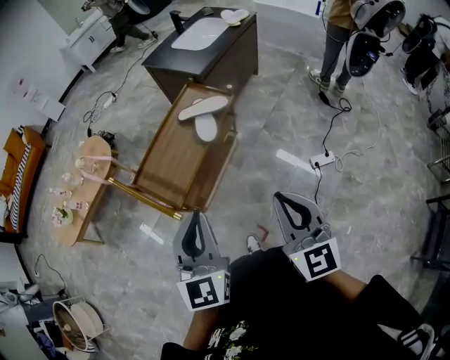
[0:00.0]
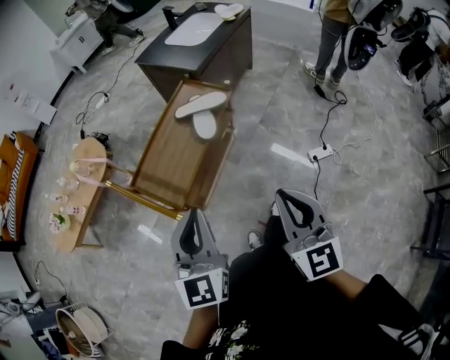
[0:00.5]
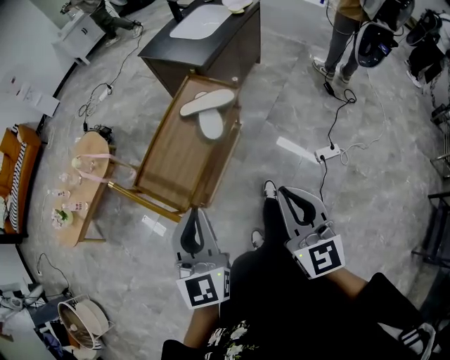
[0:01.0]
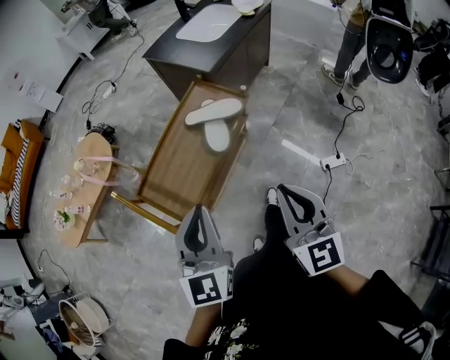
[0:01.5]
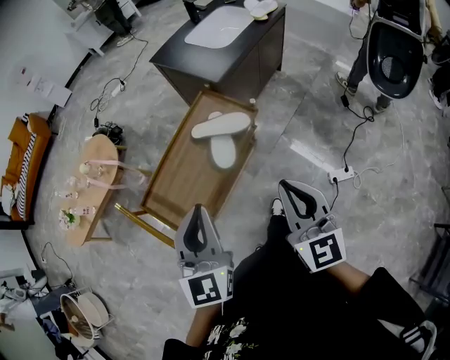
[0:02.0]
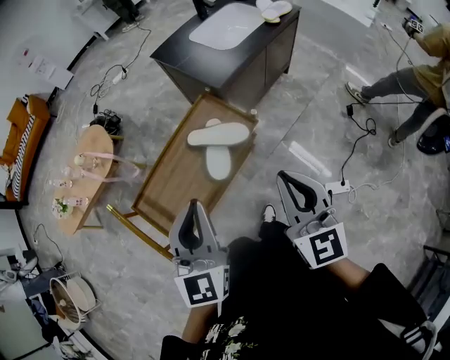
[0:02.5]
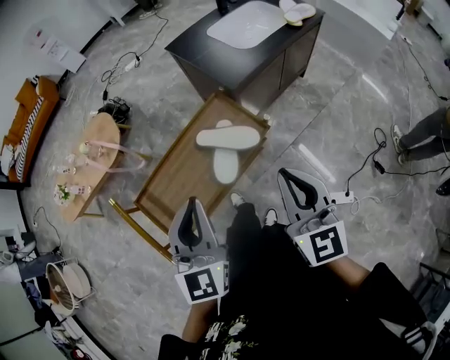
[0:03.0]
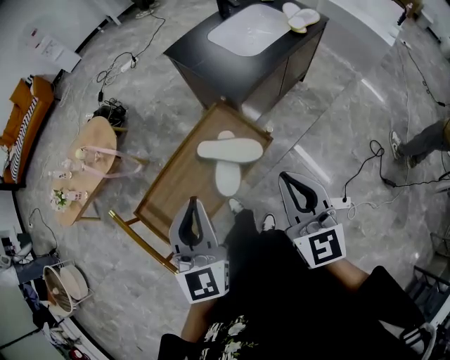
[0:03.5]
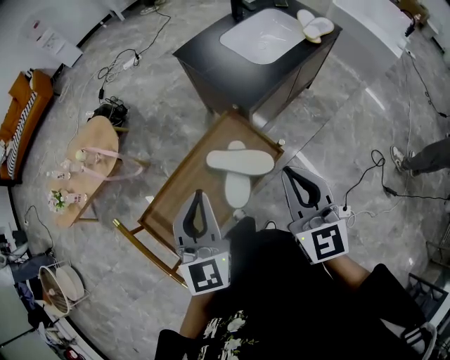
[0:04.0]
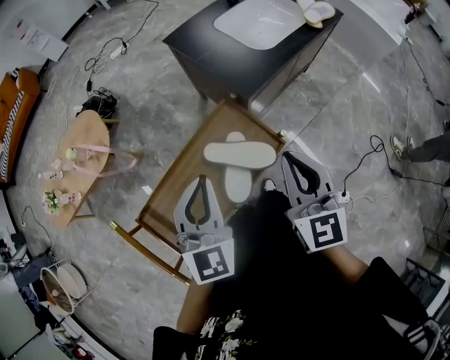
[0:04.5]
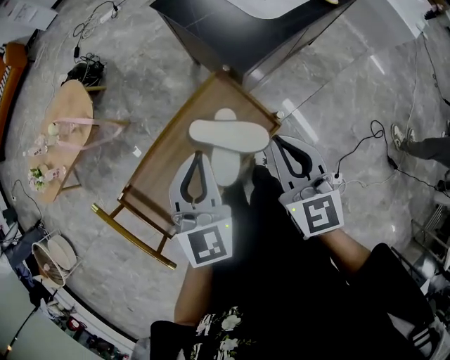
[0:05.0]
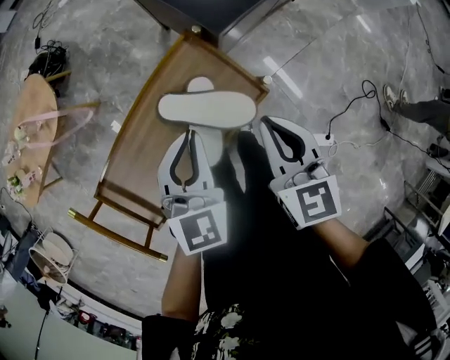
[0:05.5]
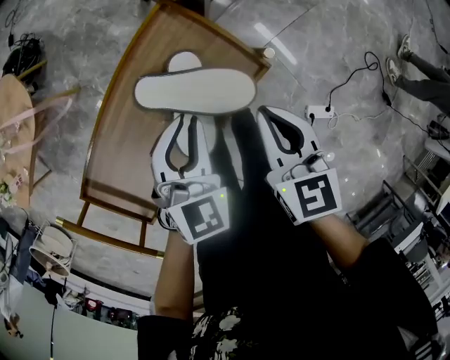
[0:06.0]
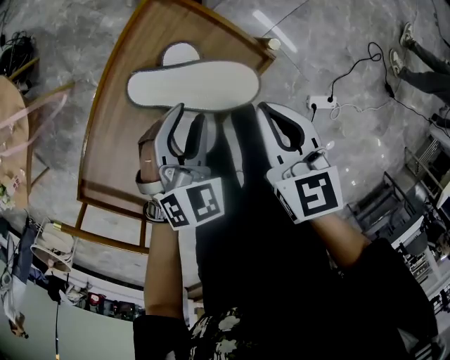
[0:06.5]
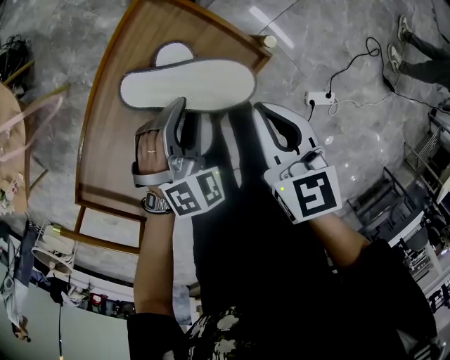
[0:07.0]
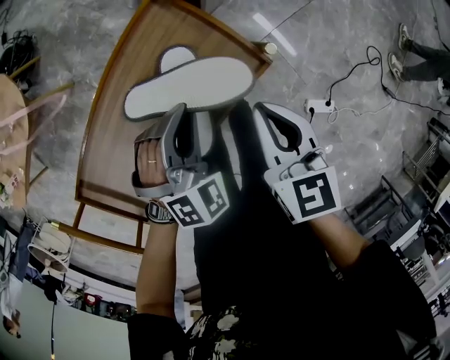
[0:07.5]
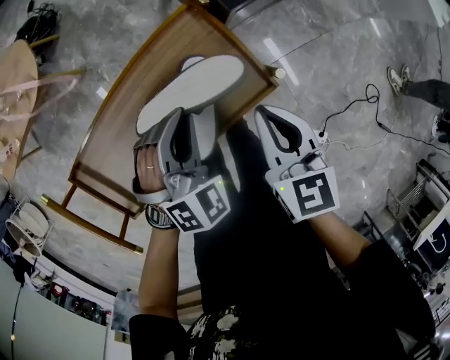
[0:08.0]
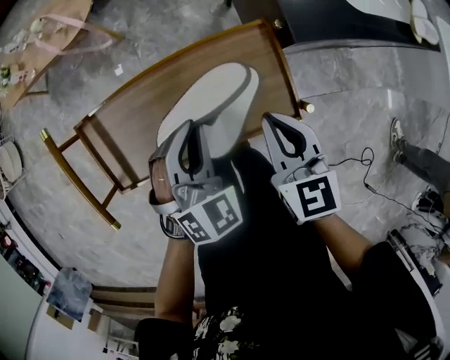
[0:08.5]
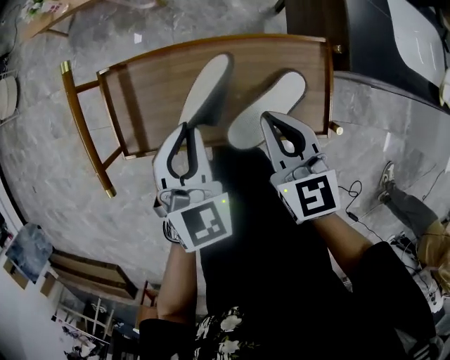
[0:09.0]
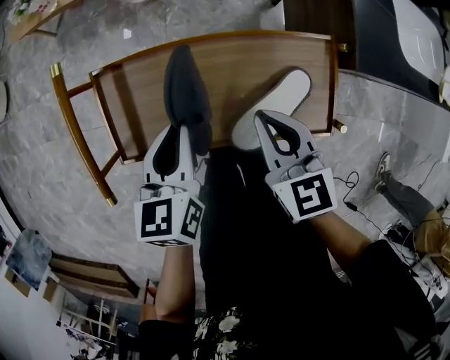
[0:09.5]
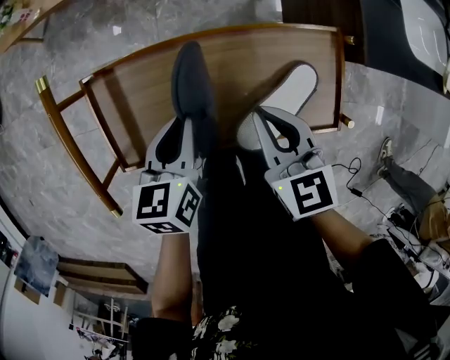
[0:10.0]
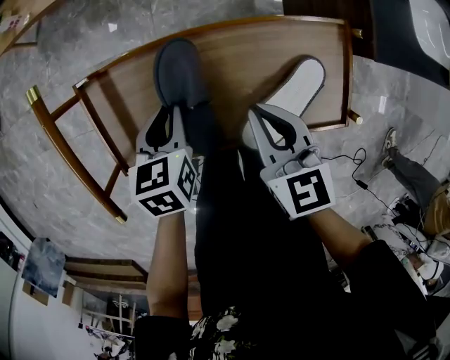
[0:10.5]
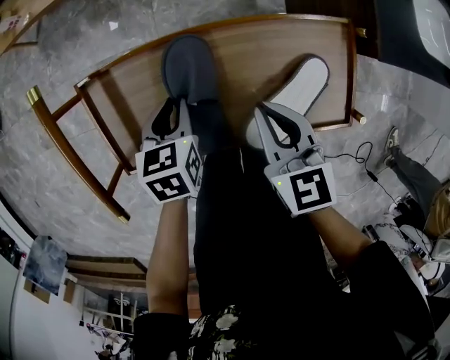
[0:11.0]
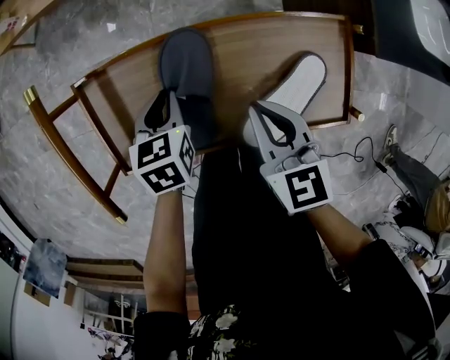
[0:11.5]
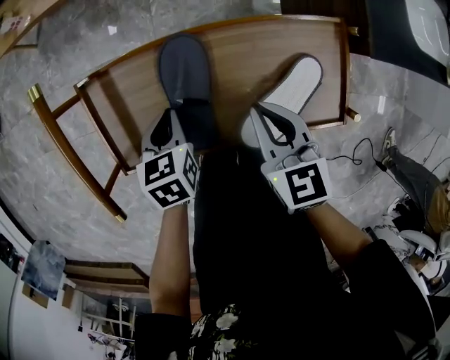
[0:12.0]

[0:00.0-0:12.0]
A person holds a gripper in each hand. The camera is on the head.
0:00.0 to 0:02.0: Both grippers travel together forward, about 20 cm.
0:02.0 to 0:04.0: Both grippers move forward, some 20 cm.
0:04.0 to 0:06.0: The right gripper shifts some 20 cm downward, and turns by about 30 degrees. The left gripper is displaced downward and to the right by about 25 cm, and turns by roughly 30 degrees.
0:06.0 to 0:08.0: The left gripper travels downward and back again, approximately 10 cm each way, swivels roughly 30 degrees, and opens, then closes once more.
0:08.0 to 0:10.0: The right gripper changes place by some 20 cm, and turns by about 30 degrees. Meanwhile the left gripper changes place by roughly 25 cm, and twists approximately 90 degrees counterclockwise, seen from behind.
0:10.0 to 0:12.0: The left gripper is displaced downward by about 10 cm.

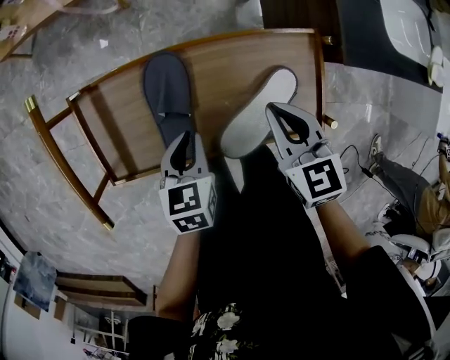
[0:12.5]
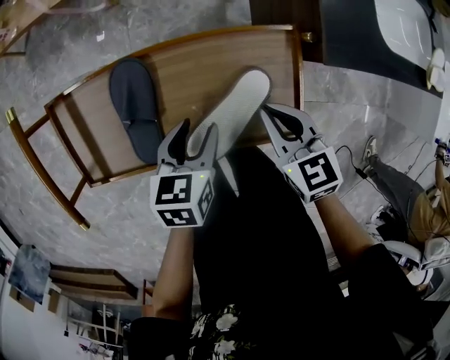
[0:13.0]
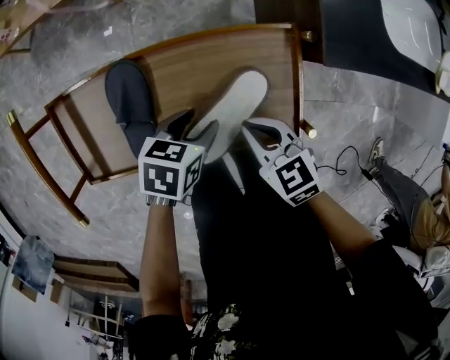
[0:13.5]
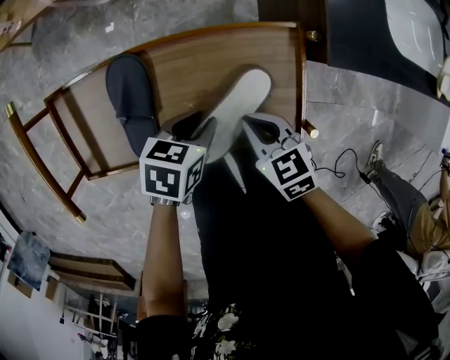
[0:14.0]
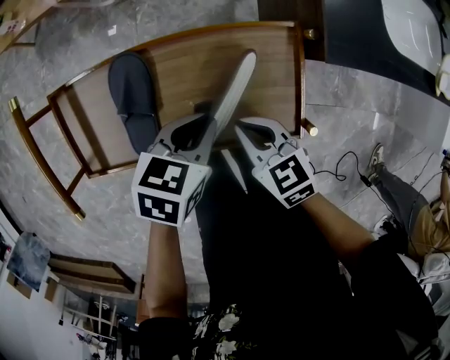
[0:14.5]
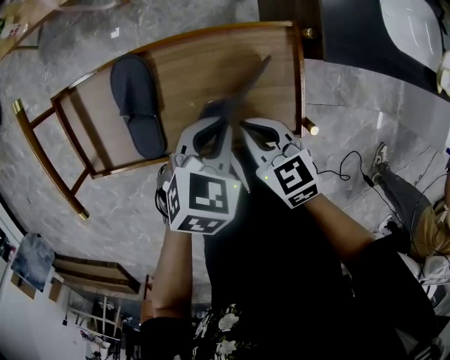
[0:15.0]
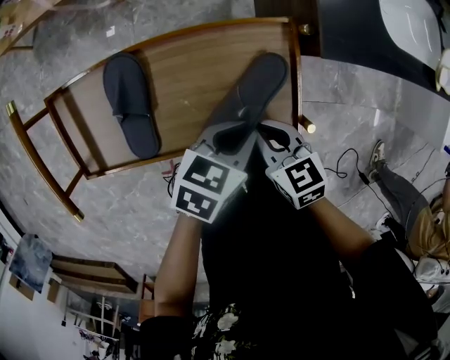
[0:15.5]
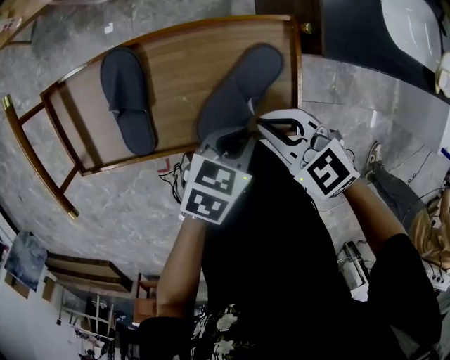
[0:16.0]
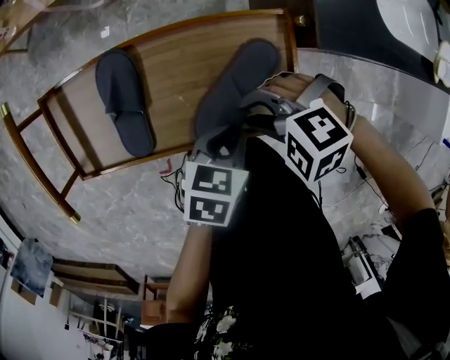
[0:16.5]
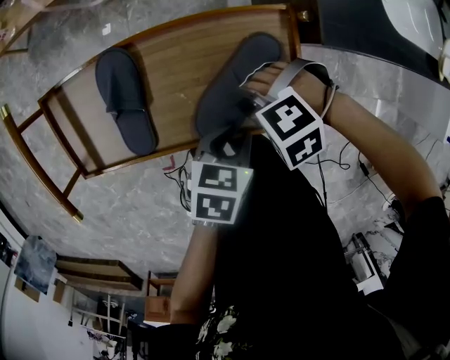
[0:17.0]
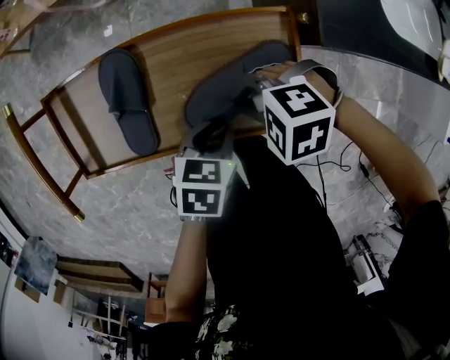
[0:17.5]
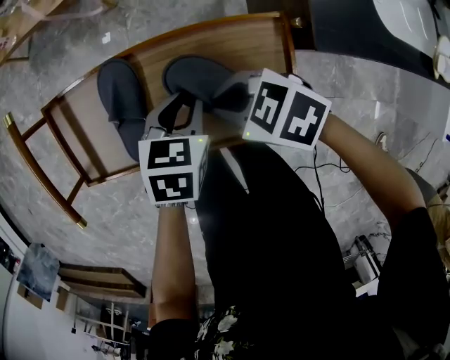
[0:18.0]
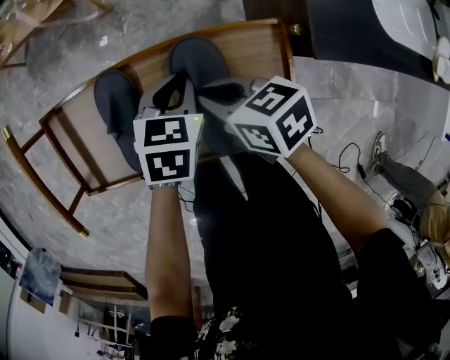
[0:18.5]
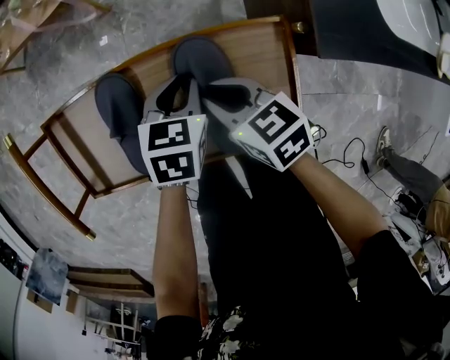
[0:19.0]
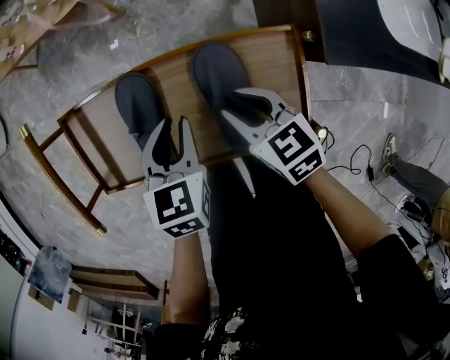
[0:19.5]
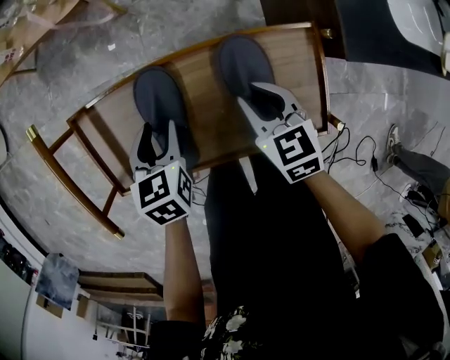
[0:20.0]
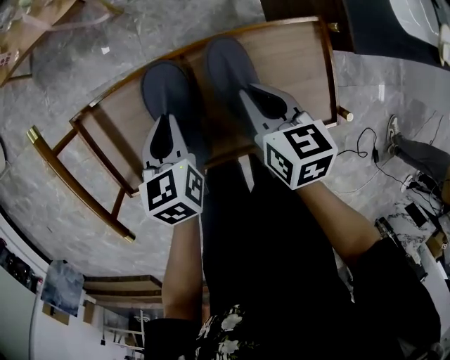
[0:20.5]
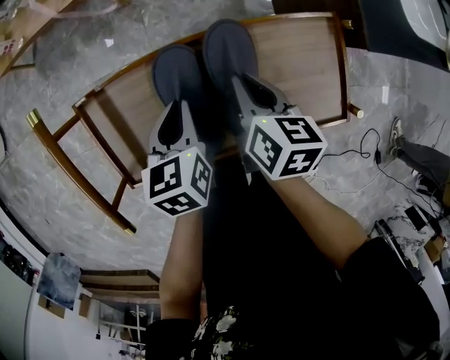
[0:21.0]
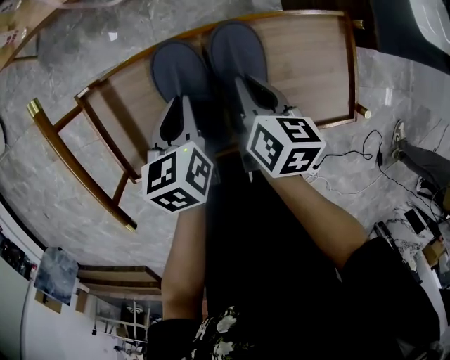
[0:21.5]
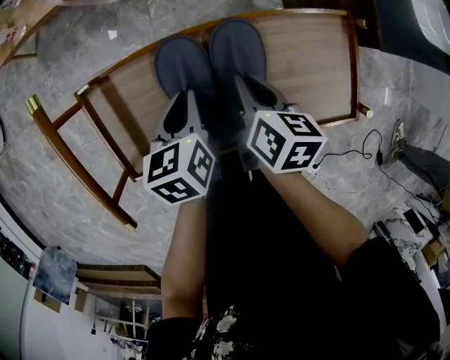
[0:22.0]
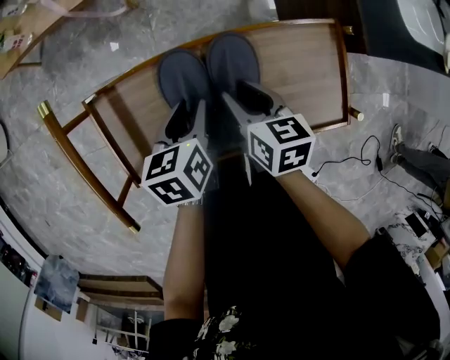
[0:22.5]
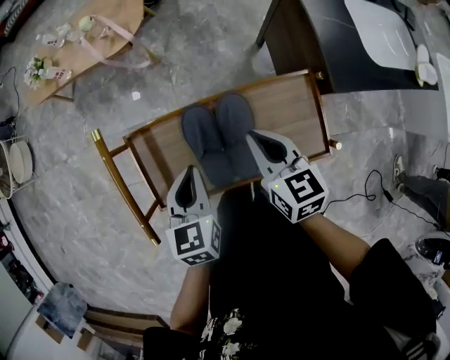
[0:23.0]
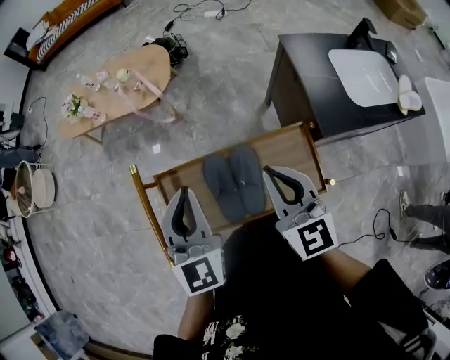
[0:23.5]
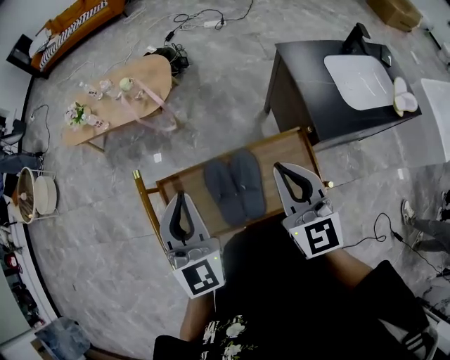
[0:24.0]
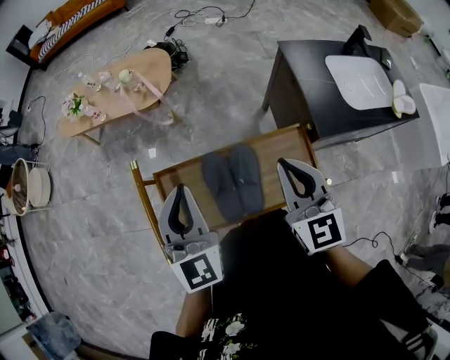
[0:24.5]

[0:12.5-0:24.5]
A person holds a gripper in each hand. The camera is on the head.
0:12.5 to 0:14.5: The left gripper is displaced to the right by some 15 cm, rotates roughly 20 degrees, and opens, then closes again, while the right gripper is displaced downward by about 5 cm.
0:14.5 to 0:16.5: The left gripper shifts by about 10 cm. The right gripper twists about 60 degrees counterclockwise, seen from behind, and opens up.
0:16.5 to 0:18.5: The right gripper ends up about 10 cm from where it was, rolls clockwise, seen from behind, by some 70 degrees, and closes its fingers. Meanwhile the left gripper ends up approximately 15 cm from where it was, and swivels approximately 20 degrees.
0:18.5 to 0:20.5: The right gripper swivels roughly 30 degrees, and opens, then closes again. Meanwhile the left gripper heads to the left, covering some 15 cm, rotates roughly 20 degrees, and opens, then closes once more.
0:20.5 to 0:22.5: The right gripper is displaced to the left by some 5 cm, and opens up; the left gripper opens.
0:22.5 to 0:24.5: The two grippers go roughly 30 cm upward. The right gripper angles its fingers upward, by some 30 degrees, and closes. Meanwhile the left gripper tips its fingers upward by about 40 degrees, and closes up.

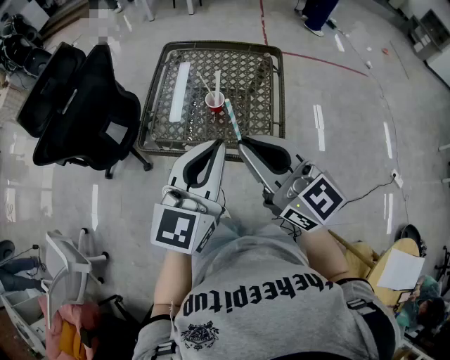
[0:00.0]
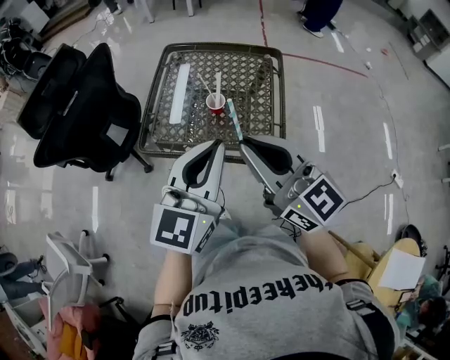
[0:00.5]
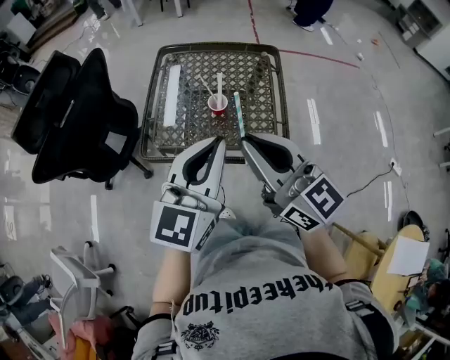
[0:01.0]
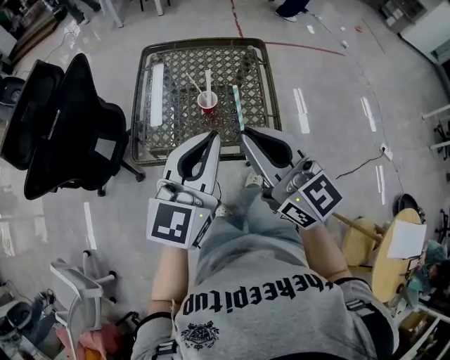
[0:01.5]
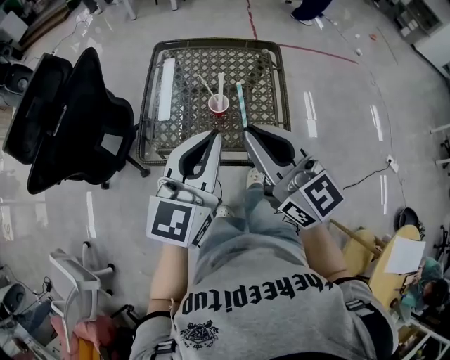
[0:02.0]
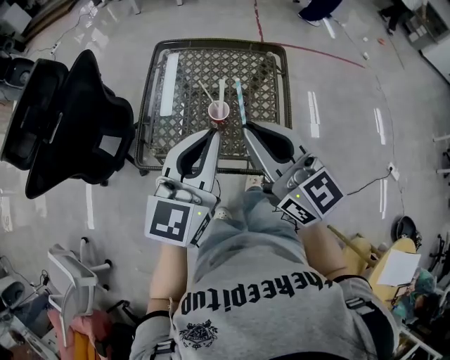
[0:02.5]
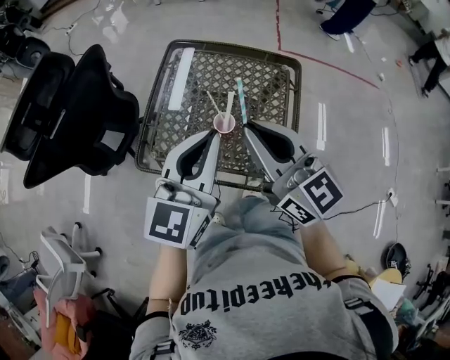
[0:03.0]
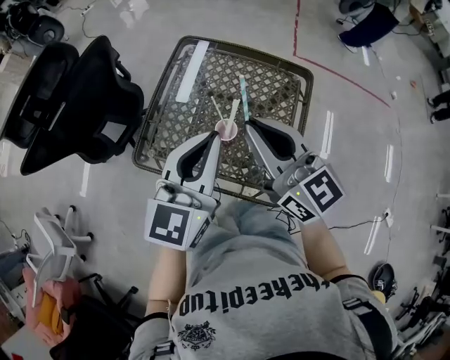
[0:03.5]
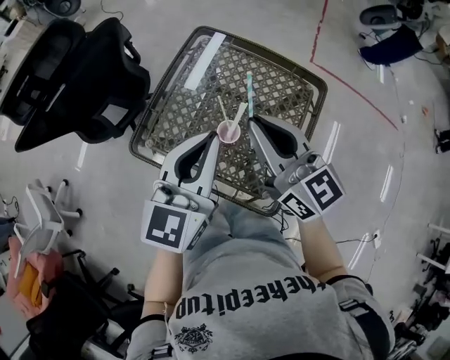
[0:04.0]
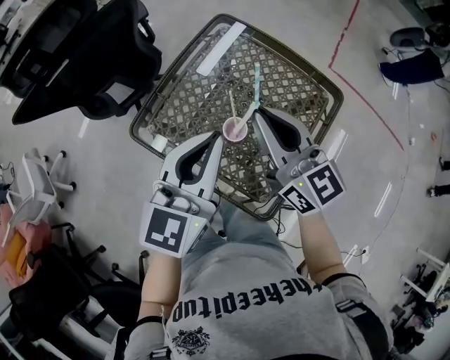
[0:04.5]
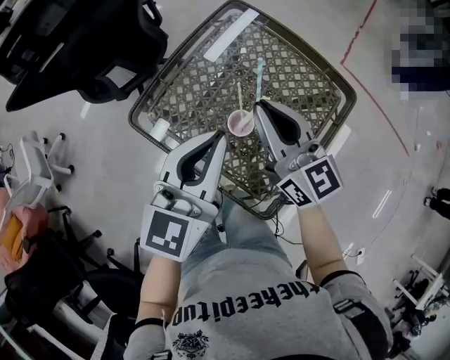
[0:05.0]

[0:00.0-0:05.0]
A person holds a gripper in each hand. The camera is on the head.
0:00.0 to 0:02.5: The grippers both shift forward by some 10 cm.
0:02.5 to 0:05.0: The right gripper shifts by roughly 25 cm, and swivels approximately 30 degrees; the left gripper shifts by about 15 cm, and swivels about 30 degrees.
